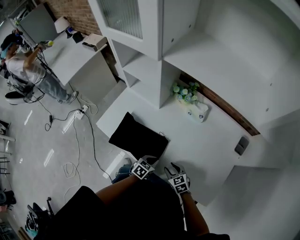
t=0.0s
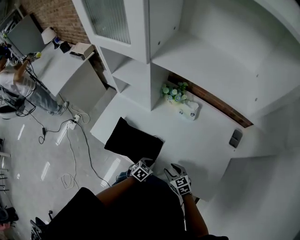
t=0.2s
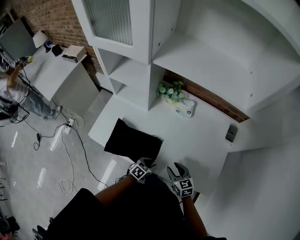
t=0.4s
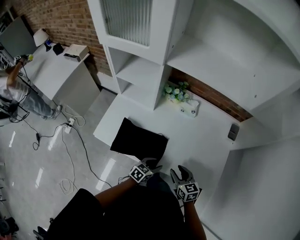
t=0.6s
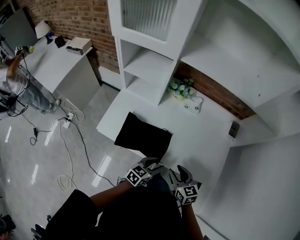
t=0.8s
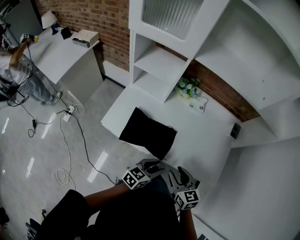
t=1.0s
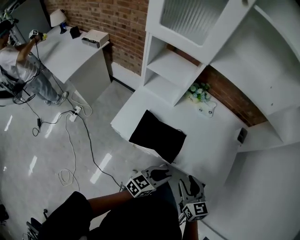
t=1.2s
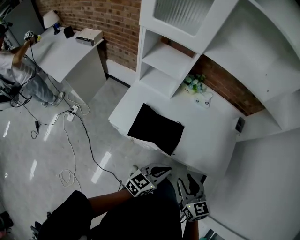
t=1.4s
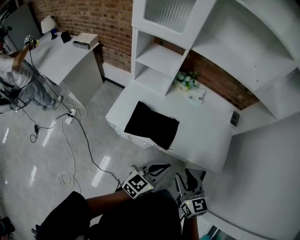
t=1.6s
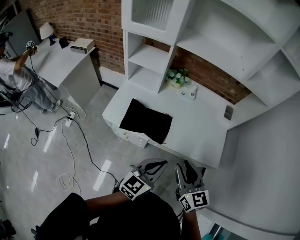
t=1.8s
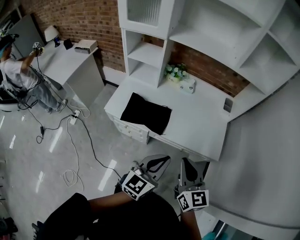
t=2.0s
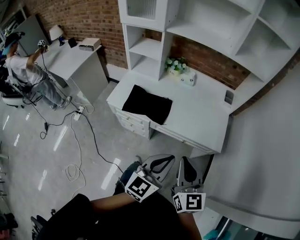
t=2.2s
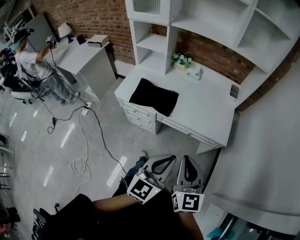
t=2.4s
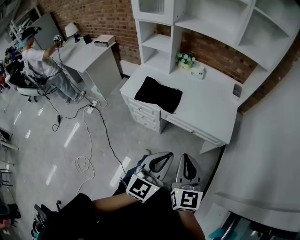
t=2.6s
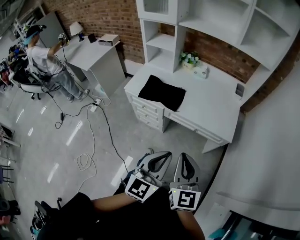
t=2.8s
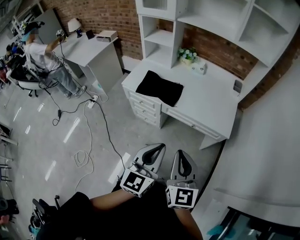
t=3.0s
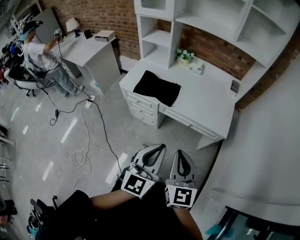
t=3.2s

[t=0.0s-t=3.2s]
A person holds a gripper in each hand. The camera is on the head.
t=0.0s to t=1.6s: The grippers both shift upward and backward by about 35 cm. The right gripper turns by roughly 40 degrees. The left gripper tips its fingers upward by approximately 40 degrees, and opens and closes again.
t=1.6s to t=3.2s: The right gripper is displaced backward and to the right by some 25 cm, and closes, while the left gripper is displaced backward by about 25 cm, and swivels approximately 40 degrees.

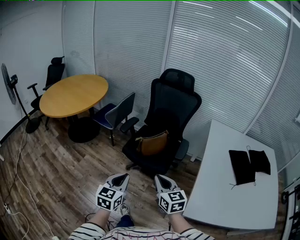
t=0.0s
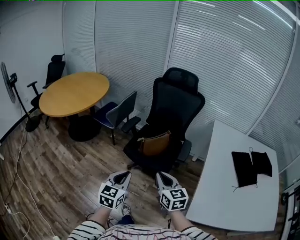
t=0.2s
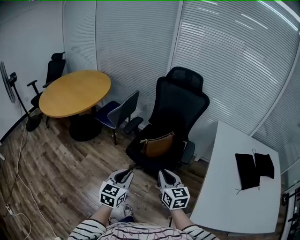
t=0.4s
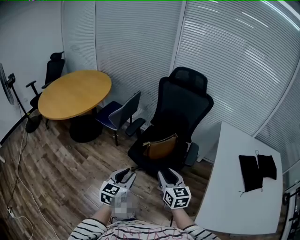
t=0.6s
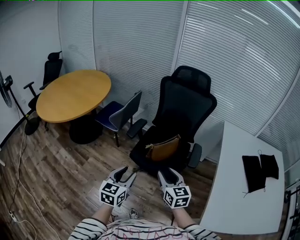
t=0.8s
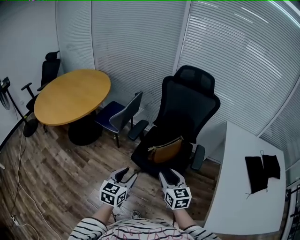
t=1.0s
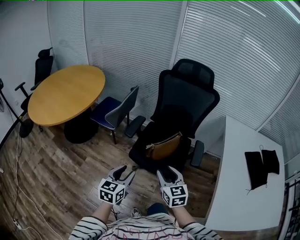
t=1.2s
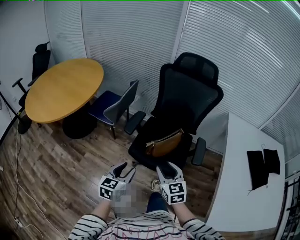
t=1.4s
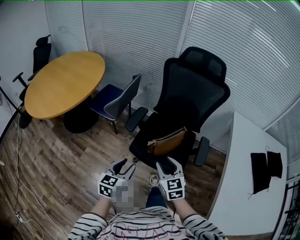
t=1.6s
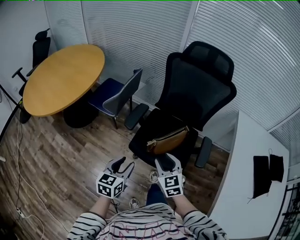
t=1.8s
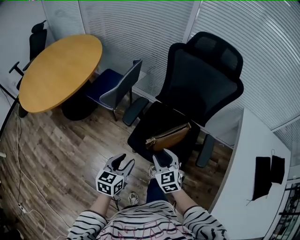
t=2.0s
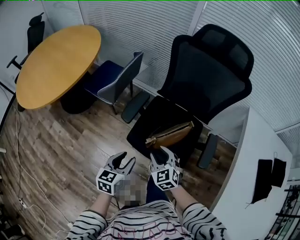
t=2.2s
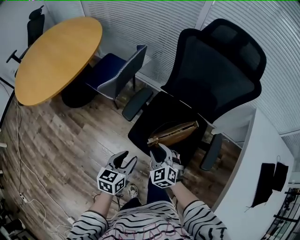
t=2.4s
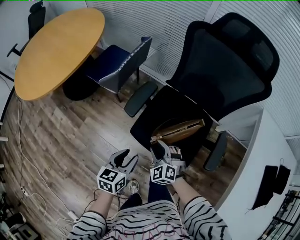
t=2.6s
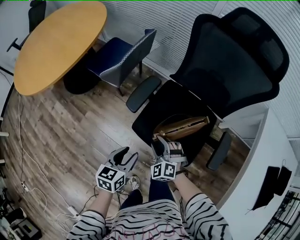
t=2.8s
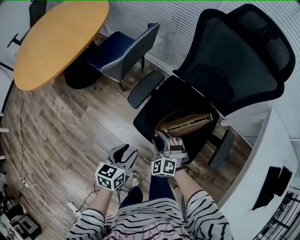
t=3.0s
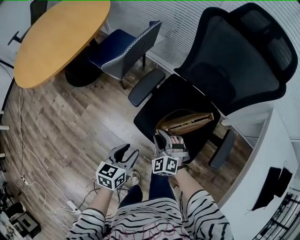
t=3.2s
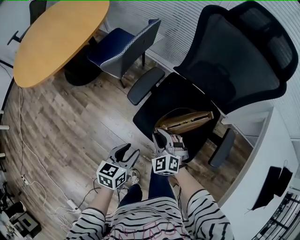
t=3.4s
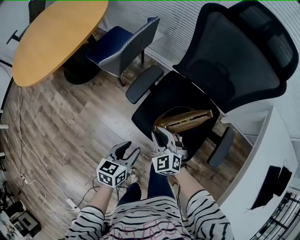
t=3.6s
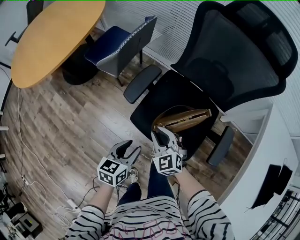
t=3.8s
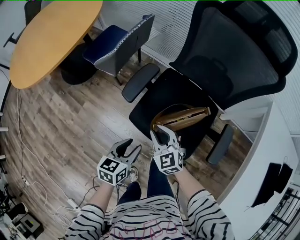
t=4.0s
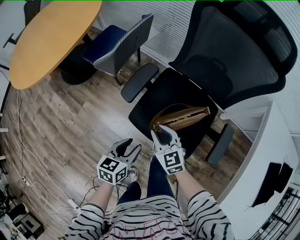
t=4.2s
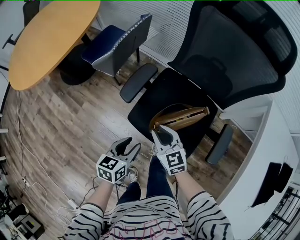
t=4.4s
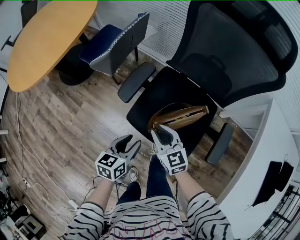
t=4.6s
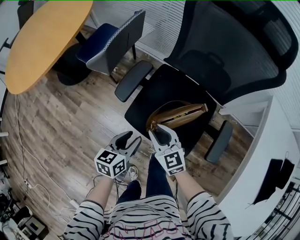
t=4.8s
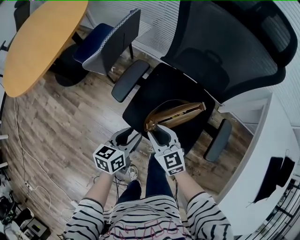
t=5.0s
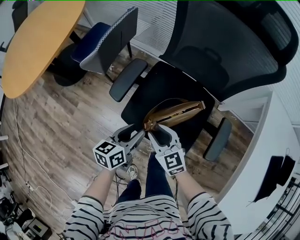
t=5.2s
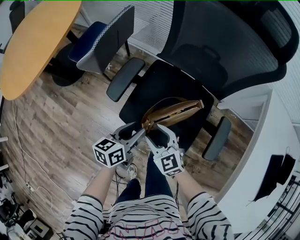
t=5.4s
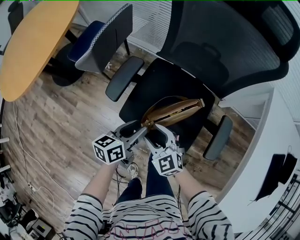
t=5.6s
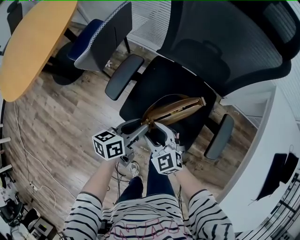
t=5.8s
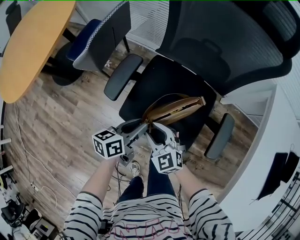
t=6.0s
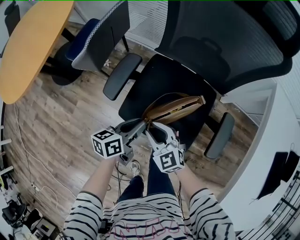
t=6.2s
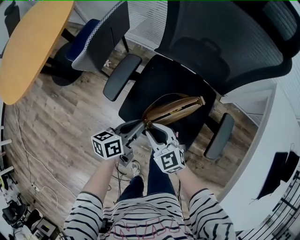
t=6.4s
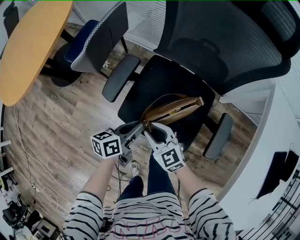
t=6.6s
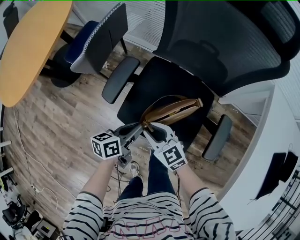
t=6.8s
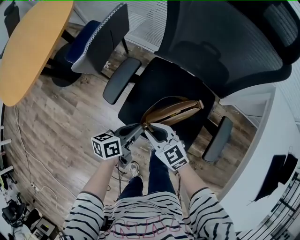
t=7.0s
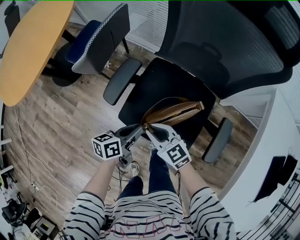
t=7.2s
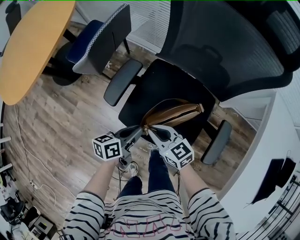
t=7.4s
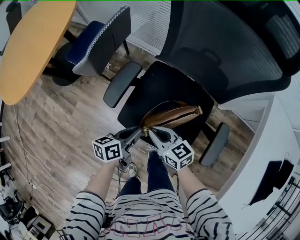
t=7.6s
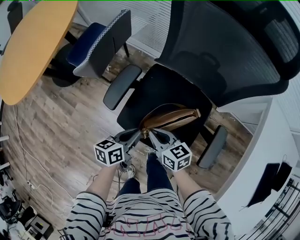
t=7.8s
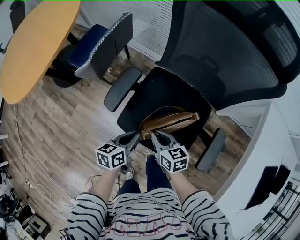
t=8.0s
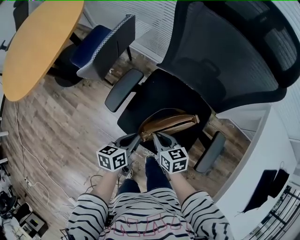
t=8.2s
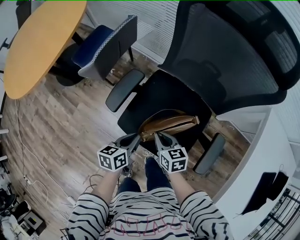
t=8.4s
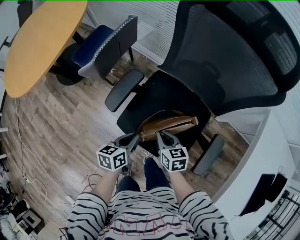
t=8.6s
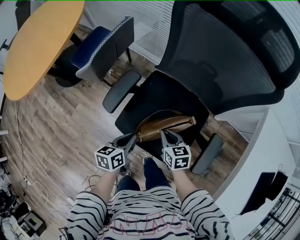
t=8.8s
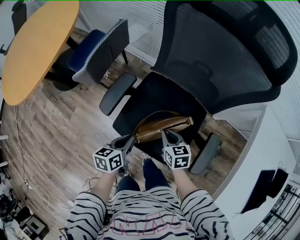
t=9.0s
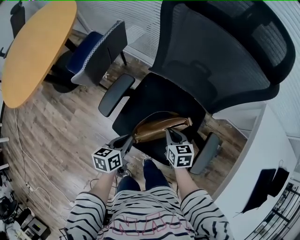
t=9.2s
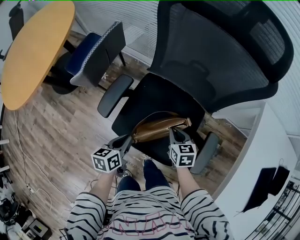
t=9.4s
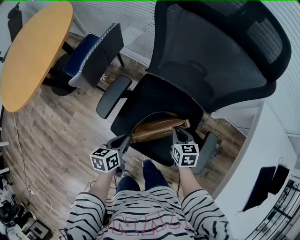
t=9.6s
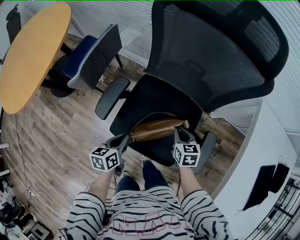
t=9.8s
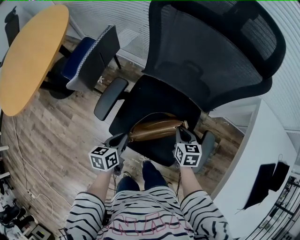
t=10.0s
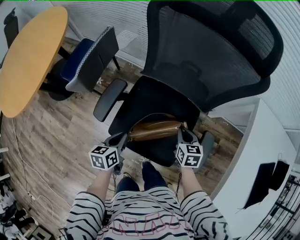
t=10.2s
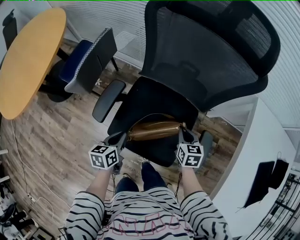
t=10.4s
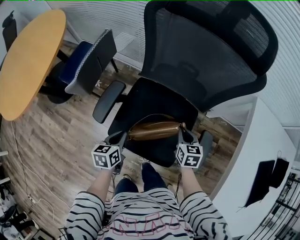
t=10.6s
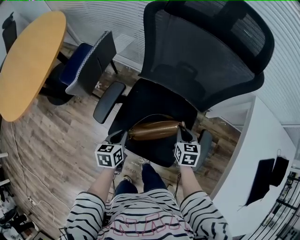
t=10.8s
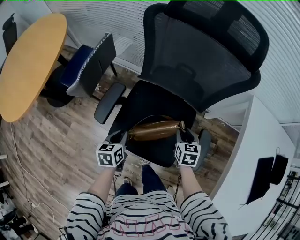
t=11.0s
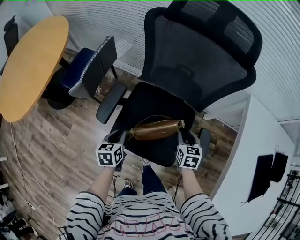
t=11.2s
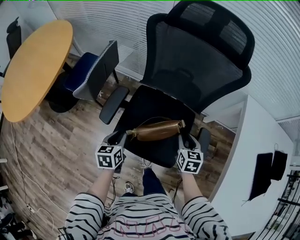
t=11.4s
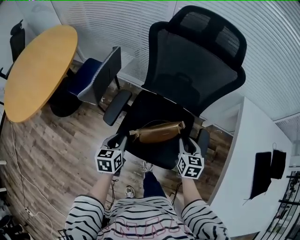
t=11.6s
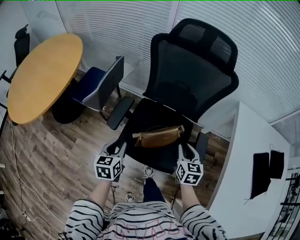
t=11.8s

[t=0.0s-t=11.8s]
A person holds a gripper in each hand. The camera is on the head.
t=0.0s to t=1.4s: Both grippers move forward and to the left, approximately 25 cm. The right gripper opens up, while the left gripper opens up.
t=1.4s to t=3.0s: Both grippers move downward and forward, about 25 cm. The right gripper rotates around the line of its fingers by about 50 degrees, counterclockwise from behind.
t=3.0s to t=4.4s: The right gripper shifts by about 5 cm, and rolls clockwise, seen from behind, by about 50 degrees.
t=4.4s to t=6.0s: The left gripper shifts about 10 cm forward and to the right, and turns by approximately 20 degrees.
t=6.0s to t=7.4s: The right gripper changes its angle by about 30 degrees, and closes its fingers.
t=7.4s to t=8.8s: The right gripper travels to the right by approximately 10 cm, and changes its angle by approximately 30 degrees.
t=8.8s to t=10.4s: The right gripper moves to the right, some 15 cm, and swivels about 20 degrees.
t=10.4s to t=11.8s: The two grippers go approximately 15 cm upward and backward. The left gripper turns by some 20 degrees.

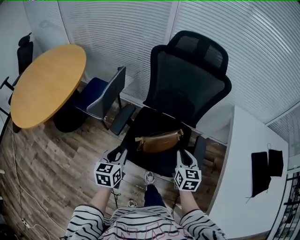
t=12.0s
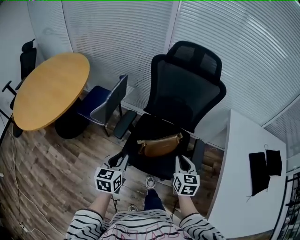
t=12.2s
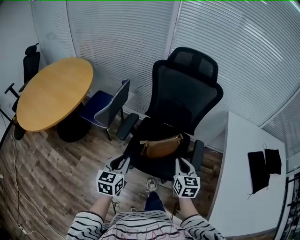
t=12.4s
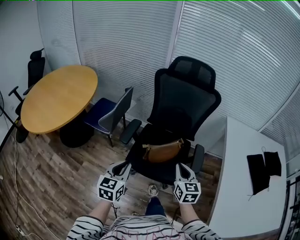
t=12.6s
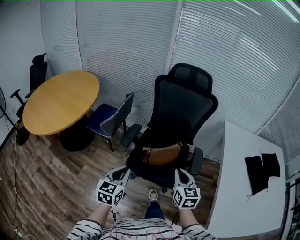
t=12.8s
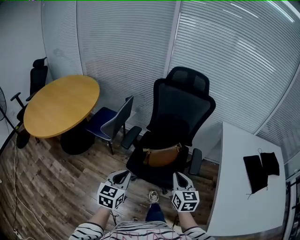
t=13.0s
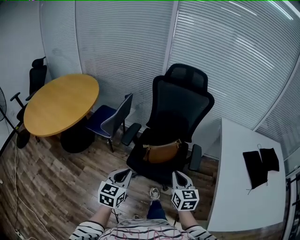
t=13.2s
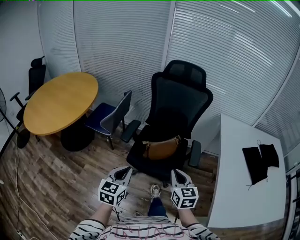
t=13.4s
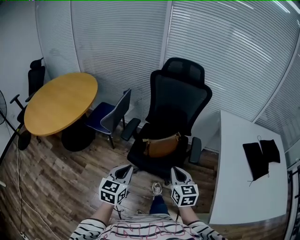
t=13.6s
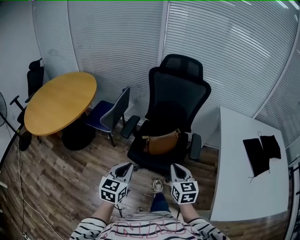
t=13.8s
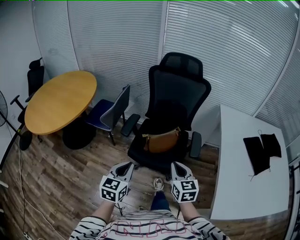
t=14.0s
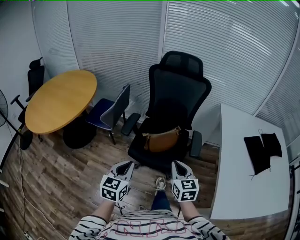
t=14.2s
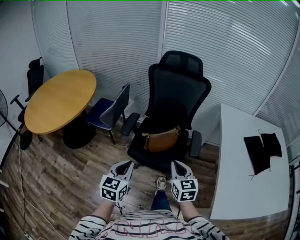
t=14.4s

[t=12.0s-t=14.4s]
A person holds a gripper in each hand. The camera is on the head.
t=12.0s to t=13.2s: The two grippers go roughly 20 cm backward and upward.
t=13.2s to t=14.4s: The grippers move only a little.

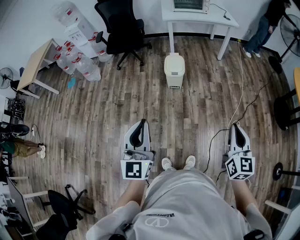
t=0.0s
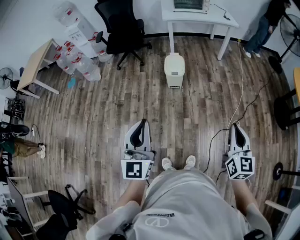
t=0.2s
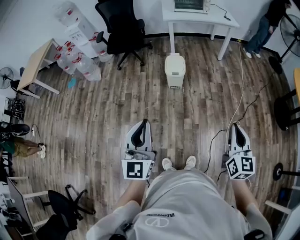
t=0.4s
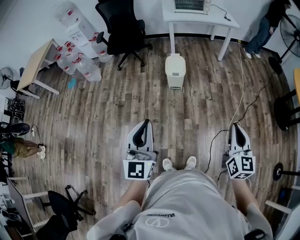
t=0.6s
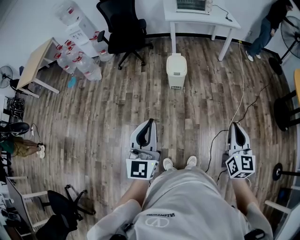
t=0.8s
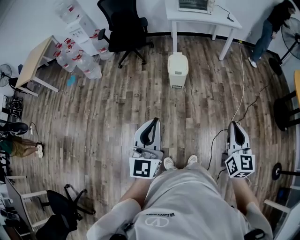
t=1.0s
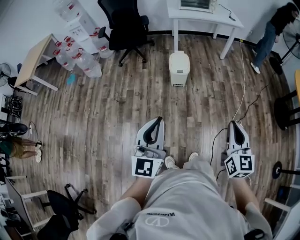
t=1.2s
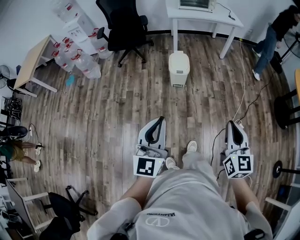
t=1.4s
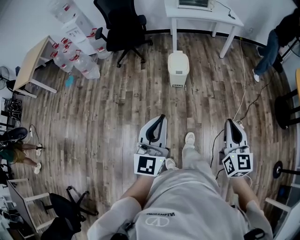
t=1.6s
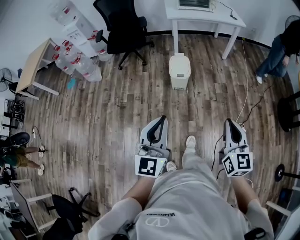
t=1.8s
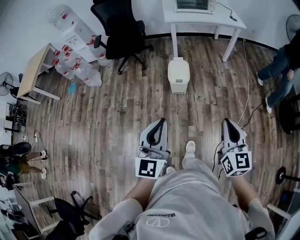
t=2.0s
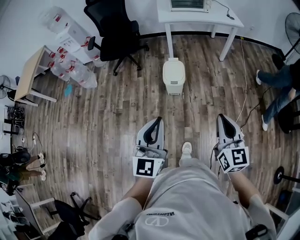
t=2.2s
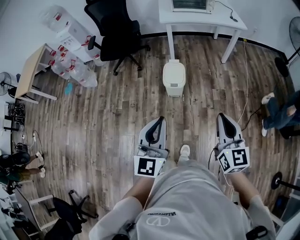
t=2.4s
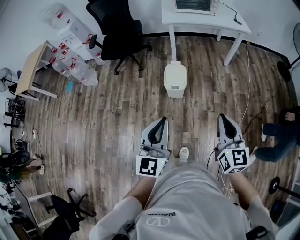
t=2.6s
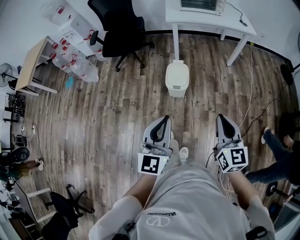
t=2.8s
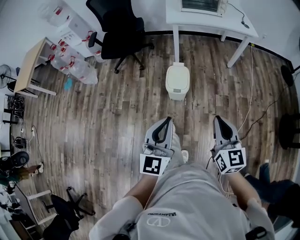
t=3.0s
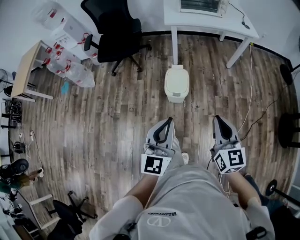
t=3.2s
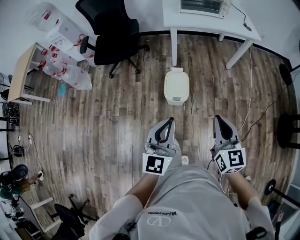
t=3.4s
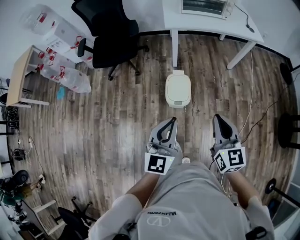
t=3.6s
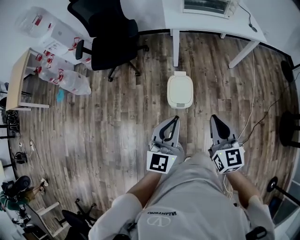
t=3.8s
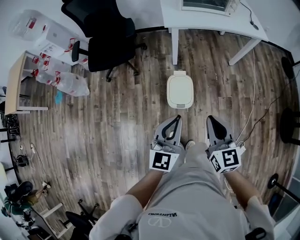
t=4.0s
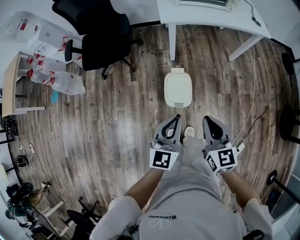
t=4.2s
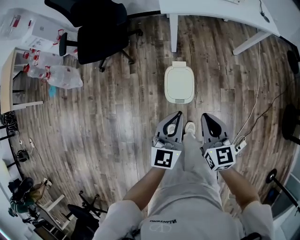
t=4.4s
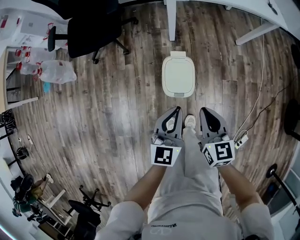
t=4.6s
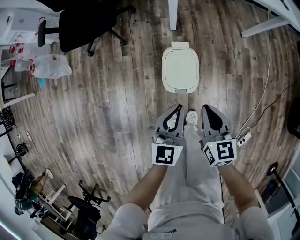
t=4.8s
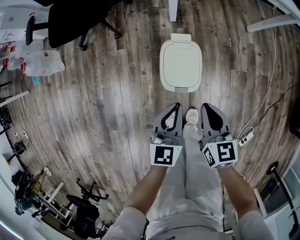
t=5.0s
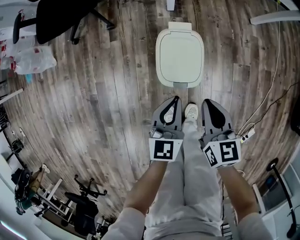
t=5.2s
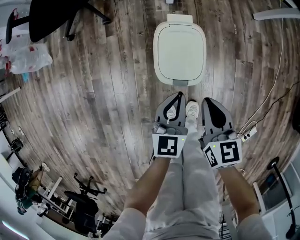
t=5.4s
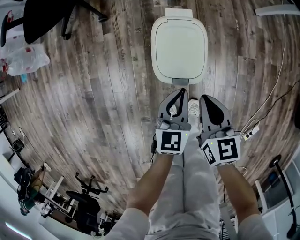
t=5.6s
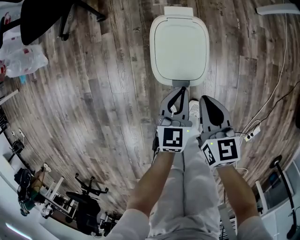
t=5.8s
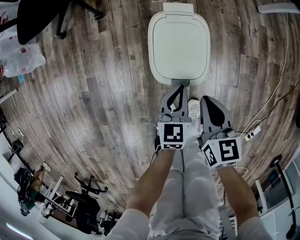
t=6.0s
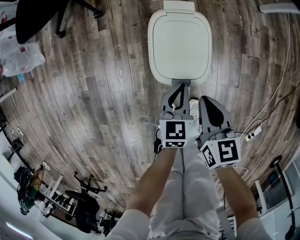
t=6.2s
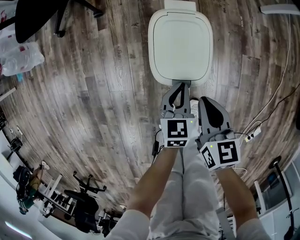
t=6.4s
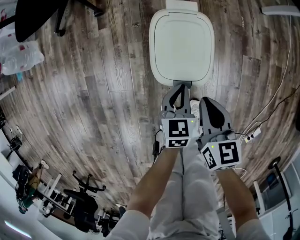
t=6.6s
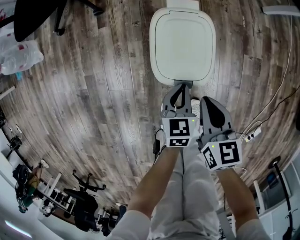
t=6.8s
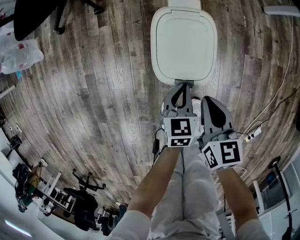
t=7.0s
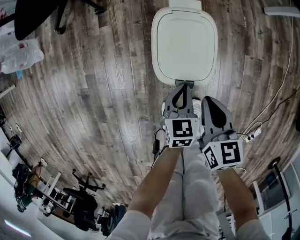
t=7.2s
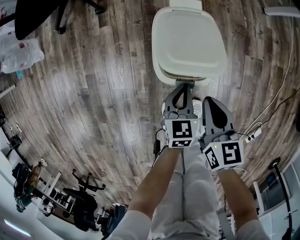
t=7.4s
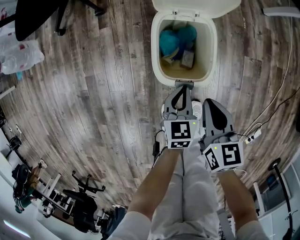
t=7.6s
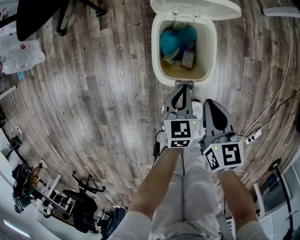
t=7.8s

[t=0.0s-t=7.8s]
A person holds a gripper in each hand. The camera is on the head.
t=0.0s to t=1.6s: The left gripper travels forward by about 5 cm, while the right gripper moves to the left and forward, approximately 10 cm.
t=1.6s to t=3.2s: The grippers both shift forward by some 35 cm.
t=3.2s to t=4.6s: Both grippers travel together forward and downward, approximately 35 cm.
t=4.6s to t=6.2s: The grippers both shift downward by some 40 cm. The left gripper changes its angle by about 20 degrees.
t=6.2s to t=7.8s: The grippers move only a little.
